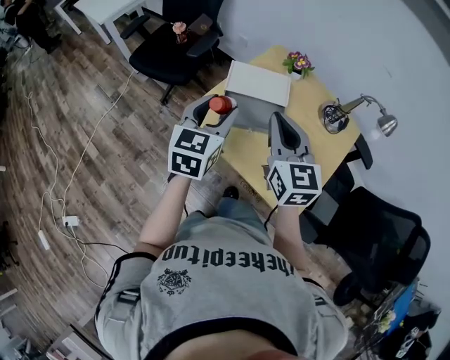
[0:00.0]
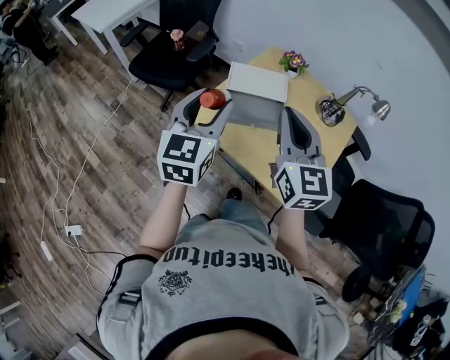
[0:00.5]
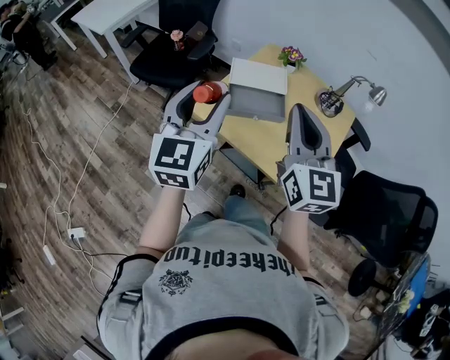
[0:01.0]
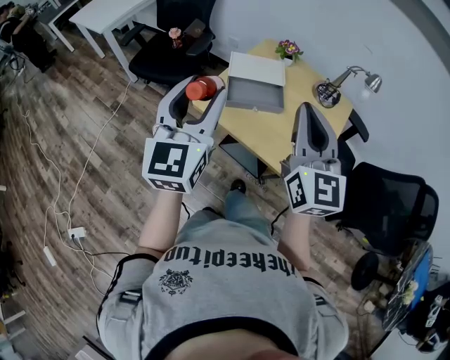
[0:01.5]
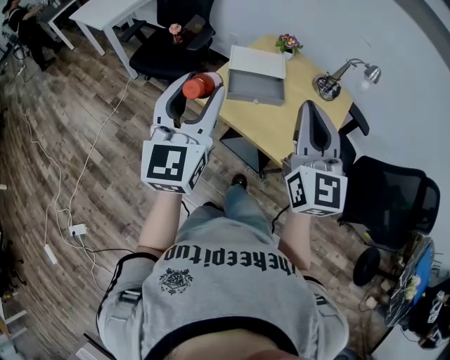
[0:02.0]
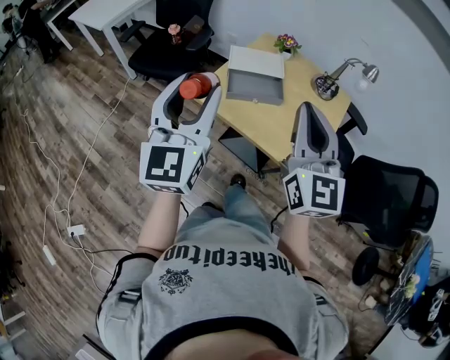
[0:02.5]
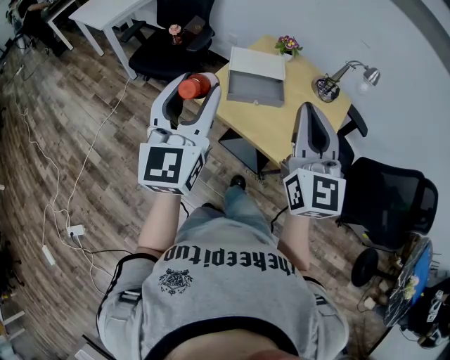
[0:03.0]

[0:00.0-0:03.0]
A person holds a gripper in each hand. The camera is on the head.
0:00.0 to 0:01.5: The grippers both shift backward and upward by some 20 cm. The left gripper rotates roughly 20 degrees. The right gripper swivels approximately 20 degrees.
0:01.5 to 0:03.0: The grippers stay close to where they were, moving slightly.

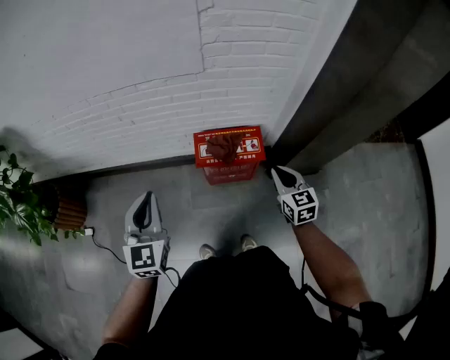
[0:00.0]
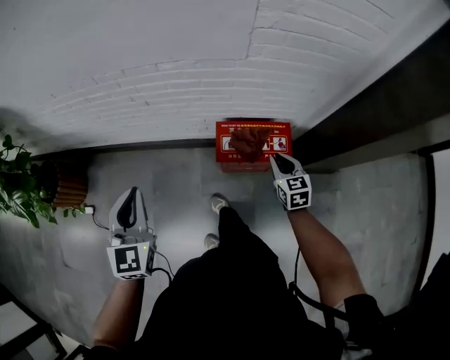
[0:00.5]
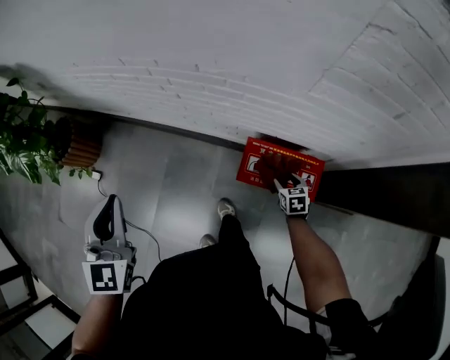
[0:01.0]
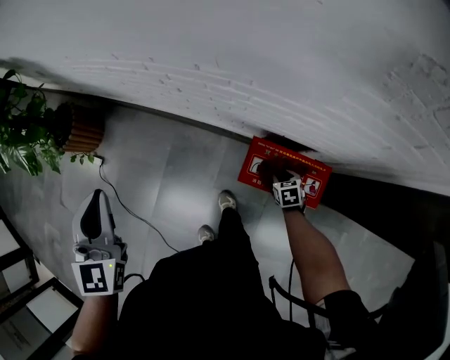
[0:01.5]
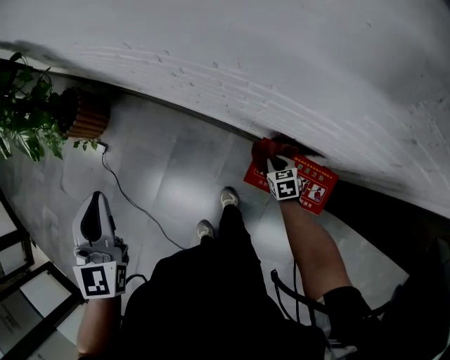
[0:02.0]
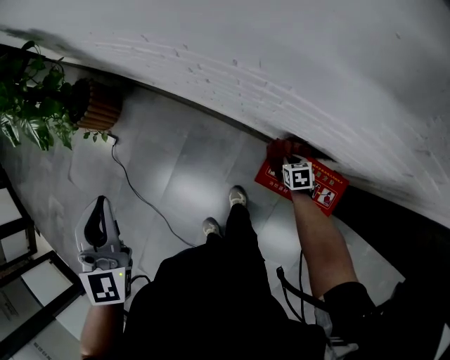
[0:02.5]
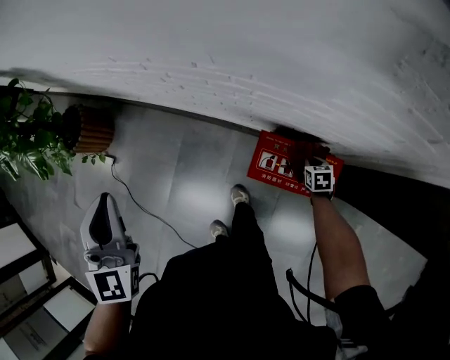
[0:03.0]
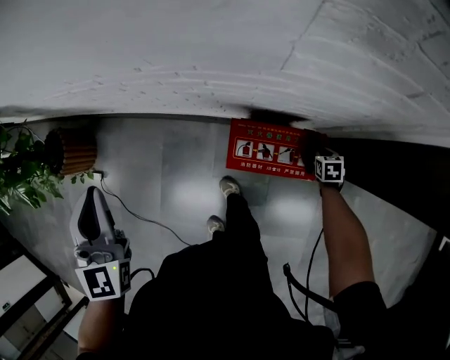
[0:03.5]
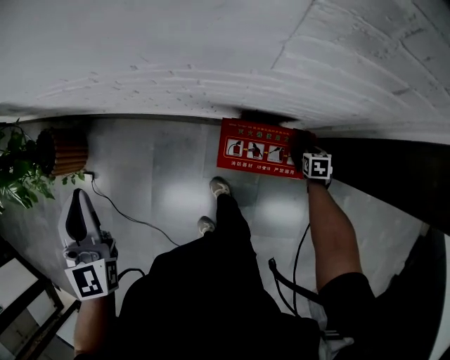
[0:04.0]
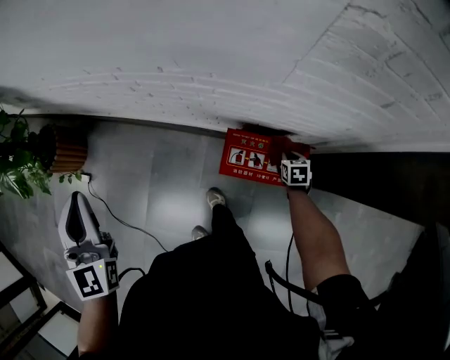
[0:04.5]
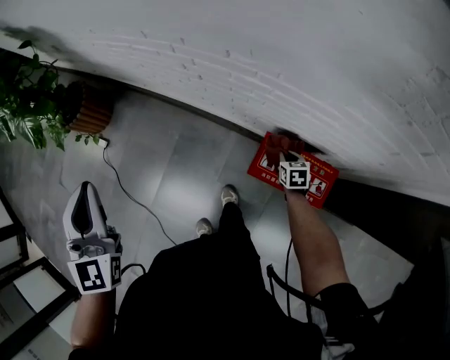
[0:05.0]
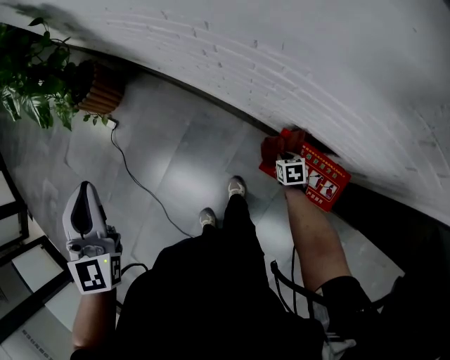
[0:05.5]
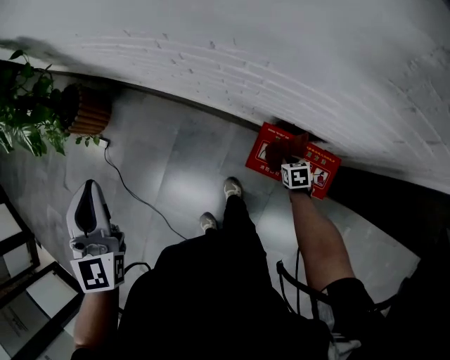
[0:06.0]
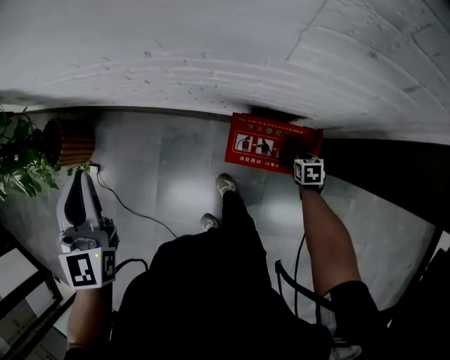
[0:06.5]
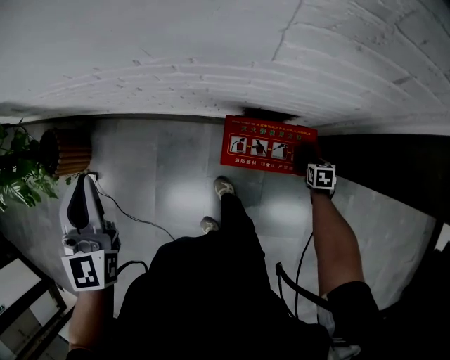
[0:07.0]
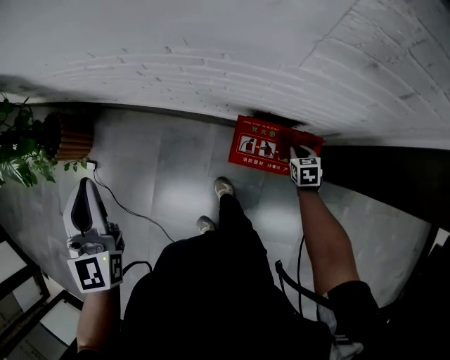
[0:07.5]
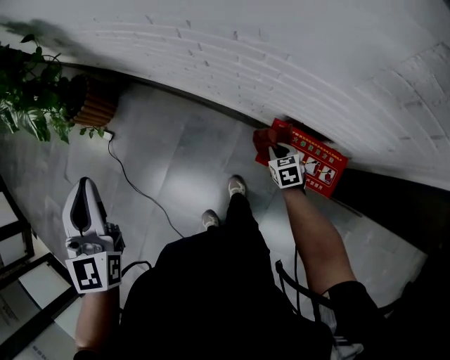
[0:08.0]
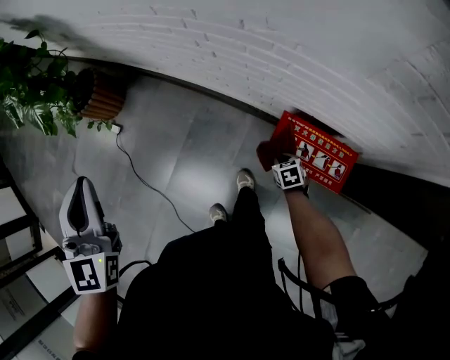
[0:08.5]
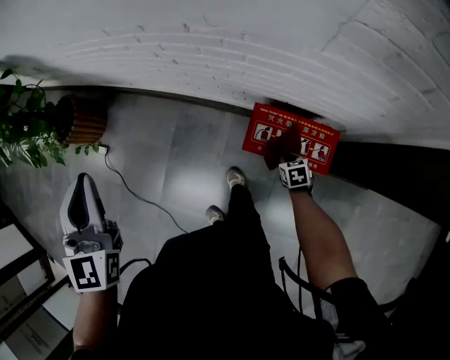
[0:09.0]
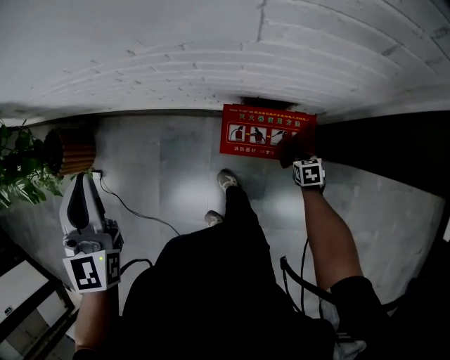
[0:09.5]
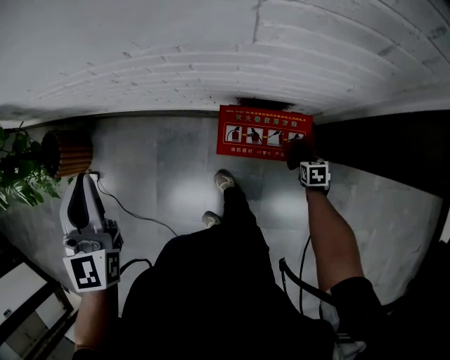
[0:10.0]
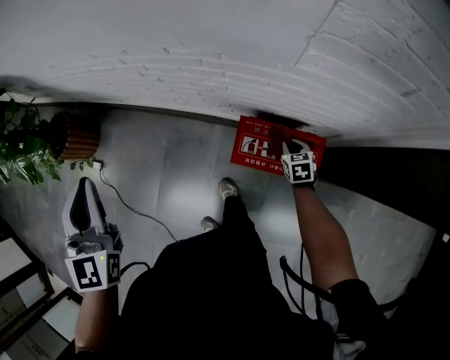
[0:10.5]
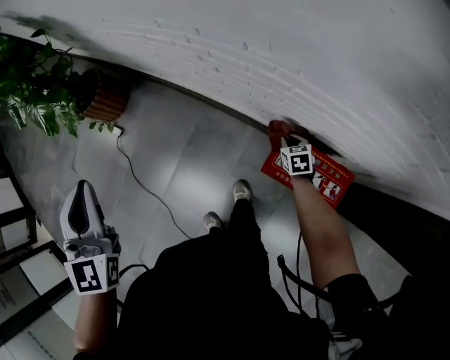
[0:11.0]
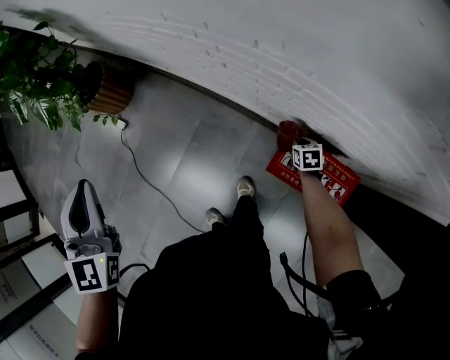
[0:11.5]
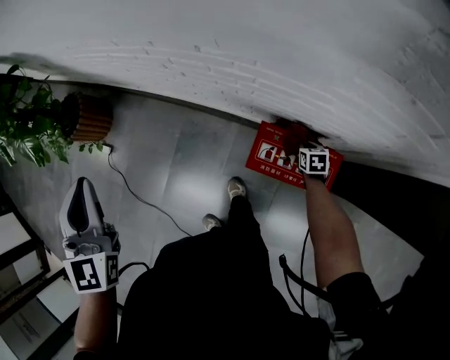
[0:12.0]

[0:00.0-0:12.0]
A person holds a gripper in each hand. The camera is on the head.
0:00.0 to 0:02.0: The right gripper changes place by approximately 40 cm, turns by some 40 degrees, and opens and closes again, while the left gripper moves roughly 20 cm, and changes its angle by approximately 30 degrees.
0:02.0 to 0:04.0: The left gripper ends up roughly 10 cm from where it was. The right gripper ends up about 30 cm from where it was, and swivels about 30 degrees.
0:04.0 to 0:06.0: The right gripper moves roughly 20 cm, and turns by about 20 degrees.
0:08.0 to 0:10.0: The right gripper moves roughly 30 cm, and turns by roughly 40 degrees. The left gripper changes place by roughly 15 cm, and turns by about 20 degrees.

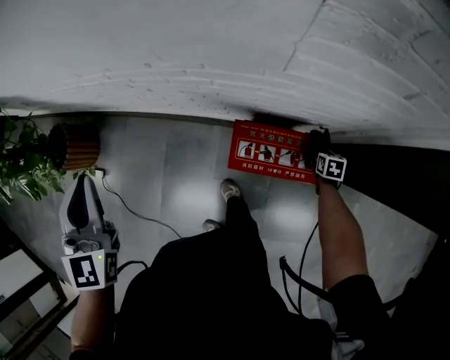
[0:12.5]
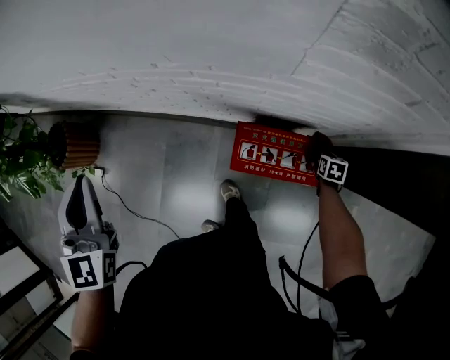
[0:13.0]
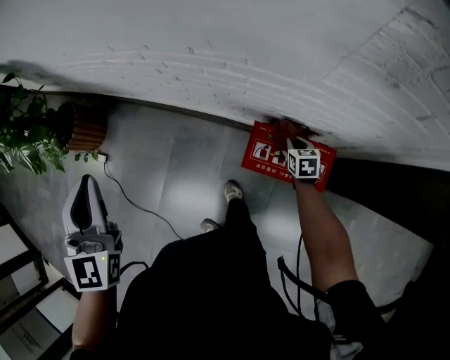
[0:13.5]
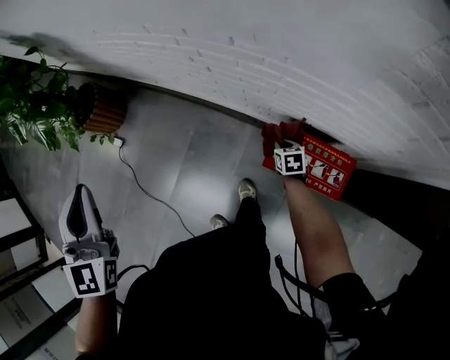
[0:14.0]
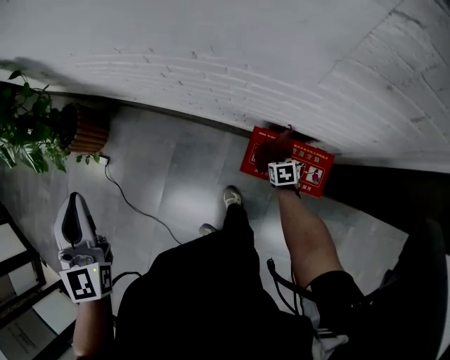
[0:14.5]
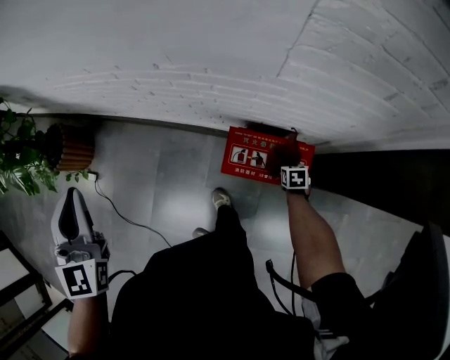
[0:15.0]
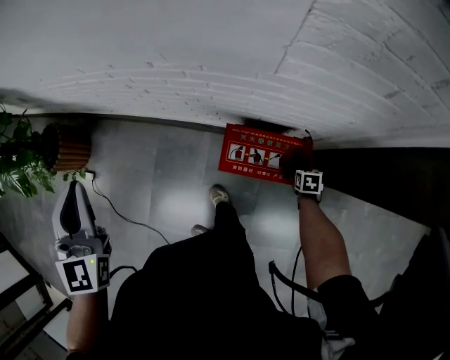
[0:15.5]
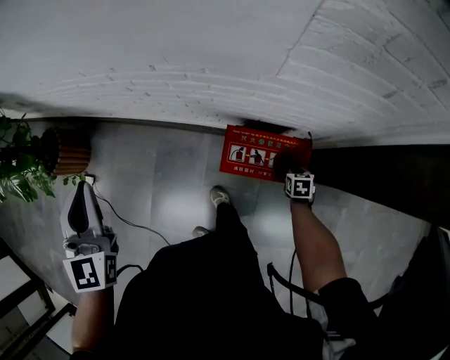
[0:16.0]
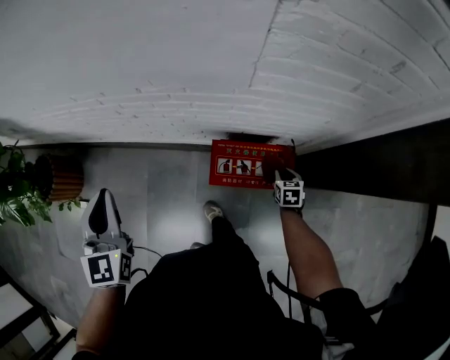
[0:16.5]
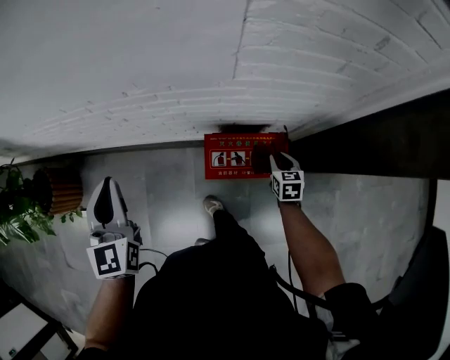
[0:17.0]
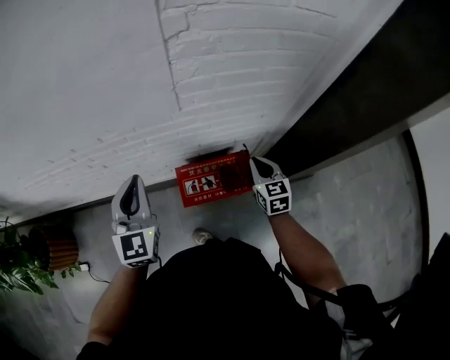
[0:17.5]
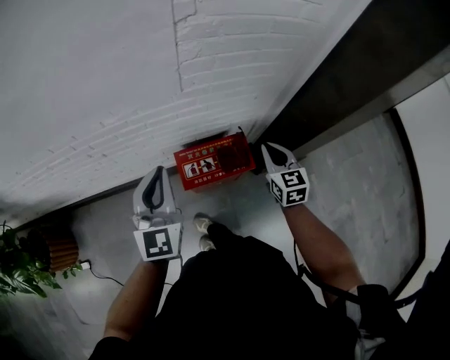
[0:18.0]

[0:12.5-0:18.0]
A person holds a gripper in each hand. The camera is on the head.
0:12.5 to 0:14.5: The right gripper changes place by roughly 25 cm, and turns by some 20 degrees, while the left gripper ends up some 15 cm from where it was.
0:14.5 to 0:16.0: The left gripper heads to the right and forward, covering roughly 10 cm; the right gripper is displaced to the right and backward by about 15 cm.
0:16.0 to 0:18.0: The left gripper shifts about 20 cm to the right, and swivels roughly 40 degrees. Meanwhile the right gripper is displaced upward by roughly 35 cm, and tilts its fingers roughly 40 degrees upward.

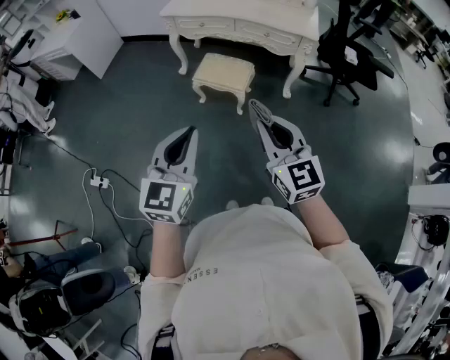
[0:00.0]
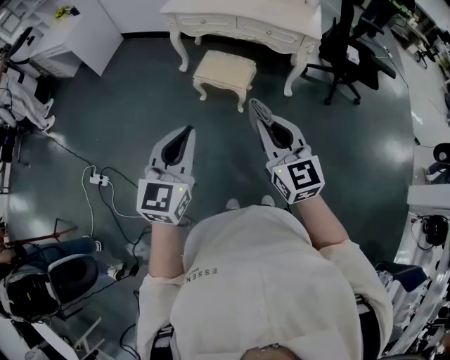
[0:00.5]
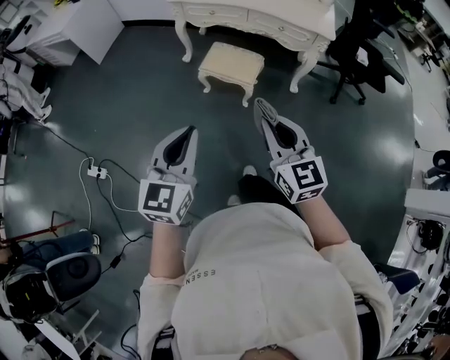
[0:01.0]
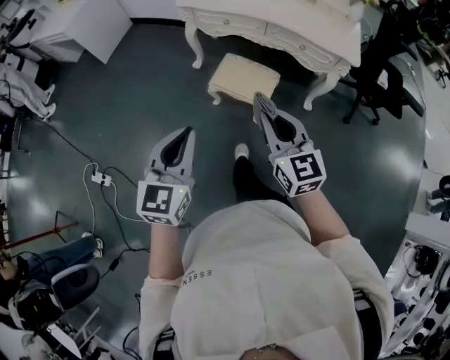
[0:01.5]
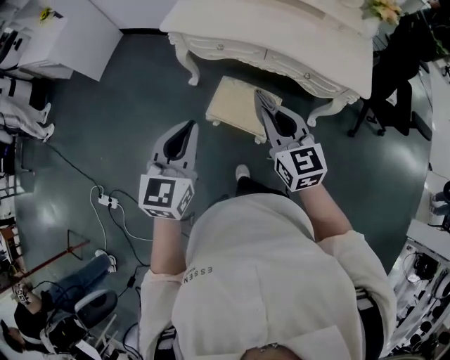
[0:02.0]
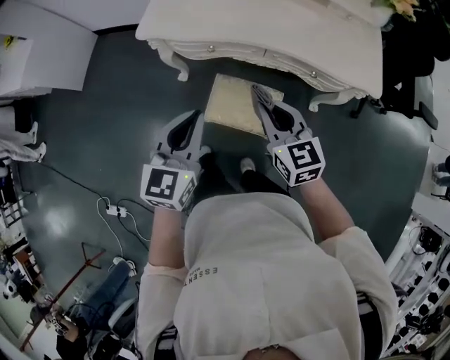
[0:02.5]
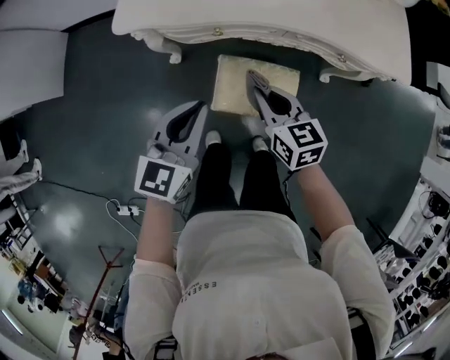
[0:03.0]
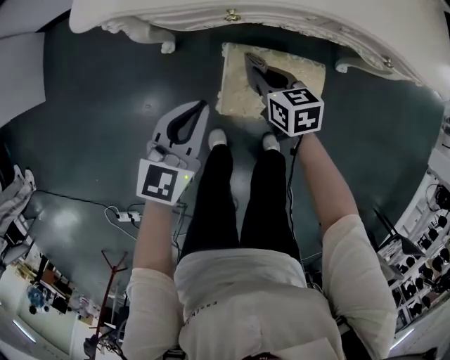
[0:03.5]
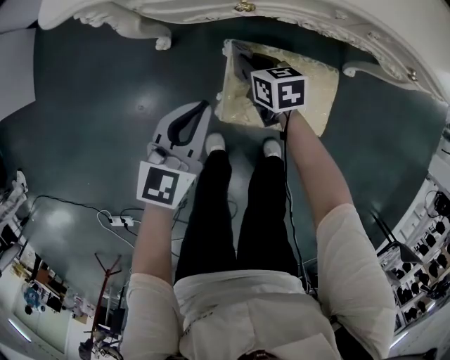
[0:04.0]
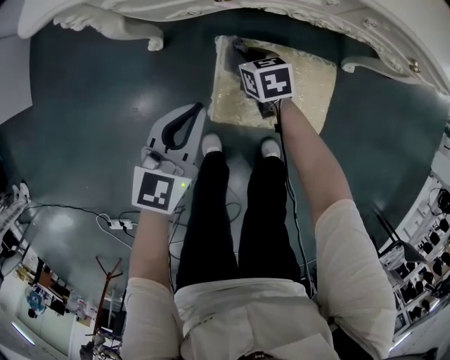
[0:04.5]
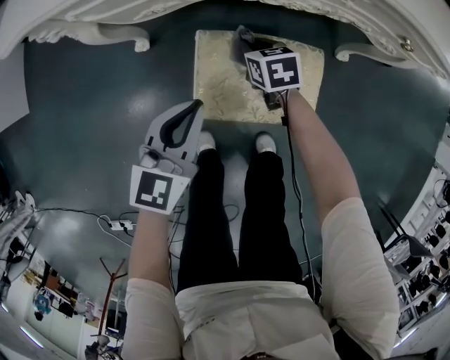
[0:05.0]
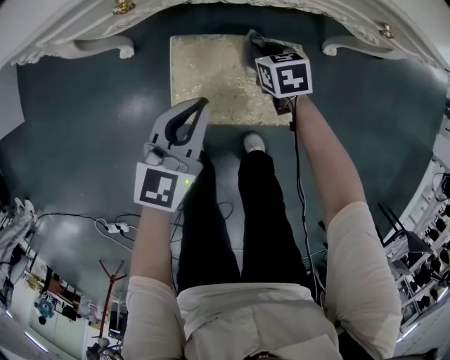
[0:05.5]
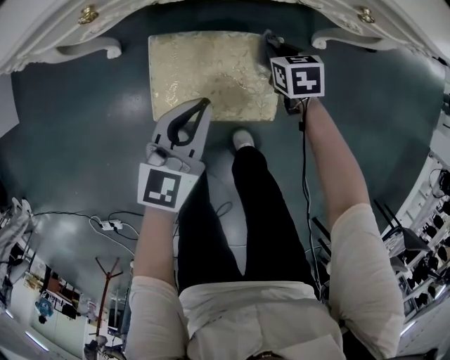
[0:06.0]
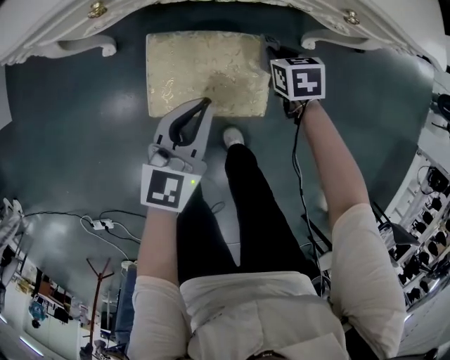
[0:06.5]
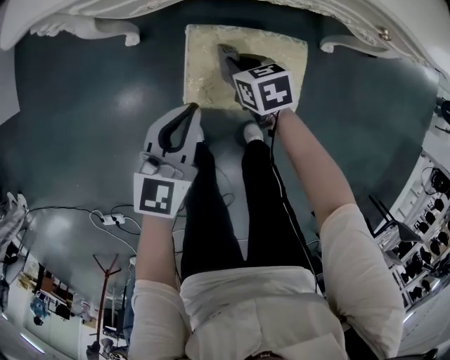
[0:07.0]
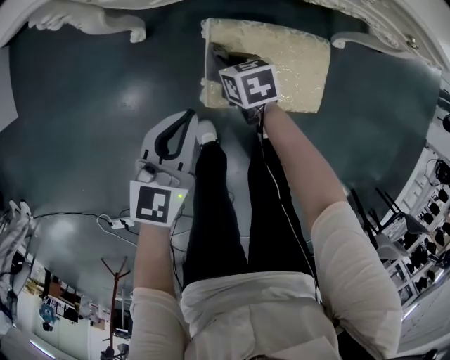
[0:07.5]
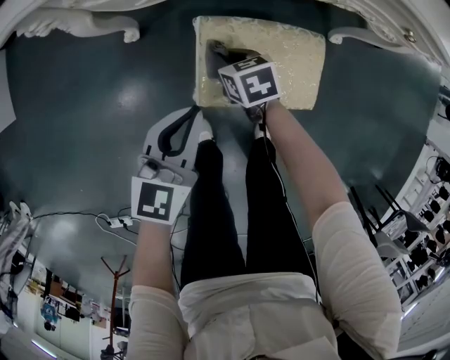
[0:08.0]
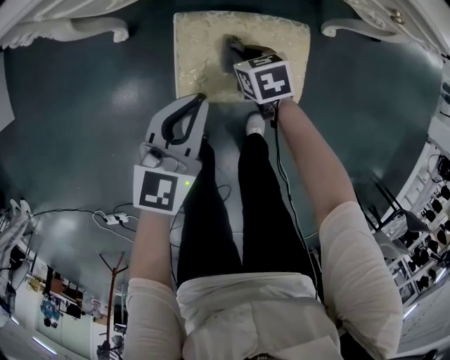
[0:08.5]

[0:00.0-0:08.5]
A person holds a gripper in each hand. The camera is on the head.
0:00.0 to 0:02.0: Both grippers are carried forward, approximately 50 cm.
0:02.0 to 0:04.0: Both grippers move downward and forward, roughly 50 cm. The left gripper rotates approximately 30 degrees, while the right gripper tips its fingers downward by approximately 30 degrees.
0:04.0 to 0:06.5: Both grippers travel together to the right, roughly 25 cm. The right gripper rotates about 20 degrees.
0:06.5 to 0:08.5: The left gripper travels to the left by roughly 10 cm, while the right gripper shifts approximately 20 cm to the left.
